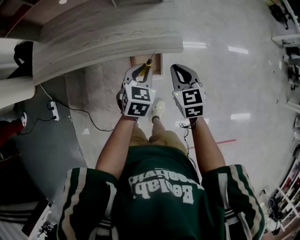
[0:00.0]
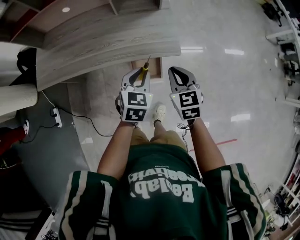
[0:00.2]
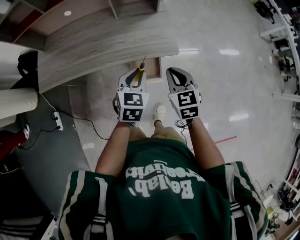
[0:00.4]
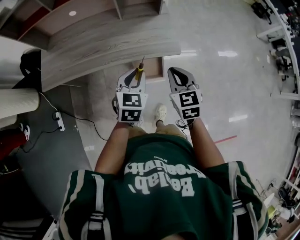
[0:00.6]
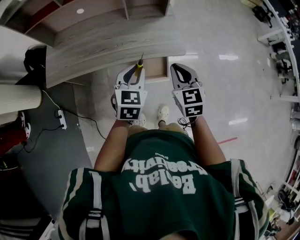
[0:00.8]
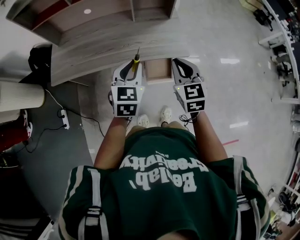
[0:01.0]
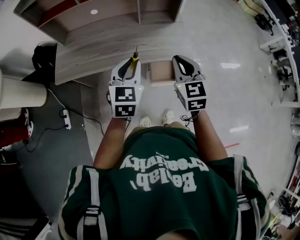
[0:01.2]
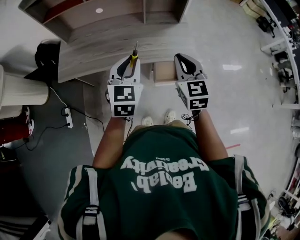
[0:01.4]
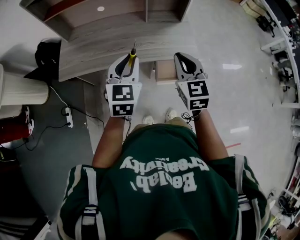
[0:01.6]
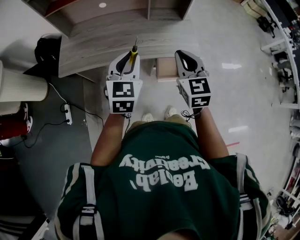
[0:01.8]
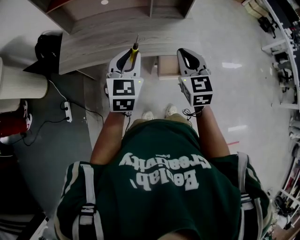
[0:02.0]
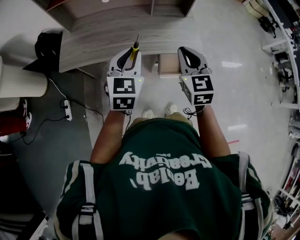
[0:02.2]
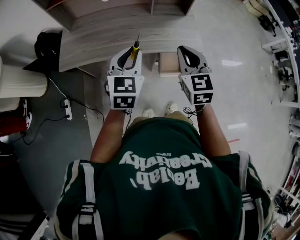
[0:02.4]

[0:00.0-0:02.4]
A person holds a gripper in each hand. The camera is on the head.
0:00.0 to 0:01.2: Both grippers travel together upward and to the left, some 30 cm. The left gripper rotates some 20 degrees.
0:01.2 to 0:02.4: The grippers both shift to the left by approximately 10 cm.

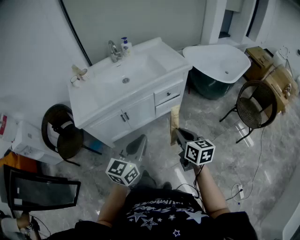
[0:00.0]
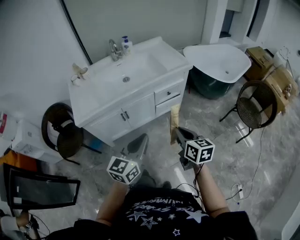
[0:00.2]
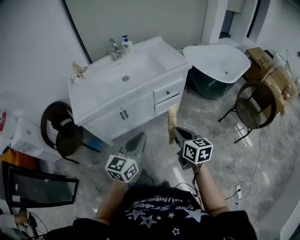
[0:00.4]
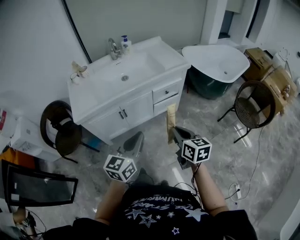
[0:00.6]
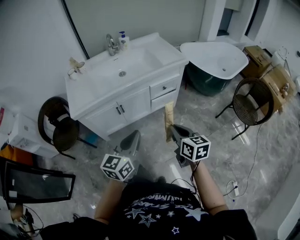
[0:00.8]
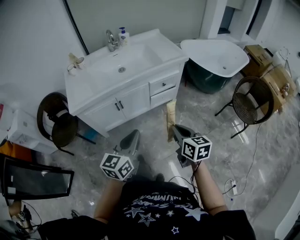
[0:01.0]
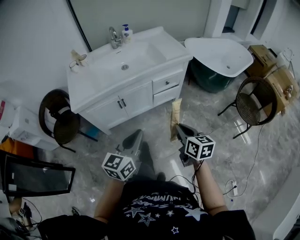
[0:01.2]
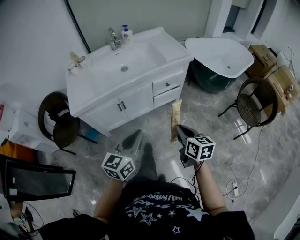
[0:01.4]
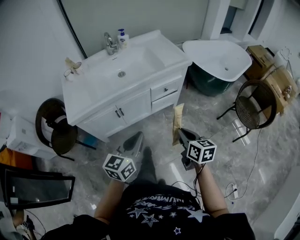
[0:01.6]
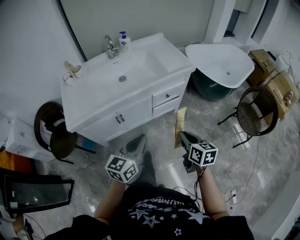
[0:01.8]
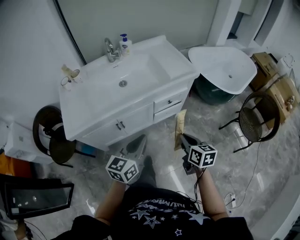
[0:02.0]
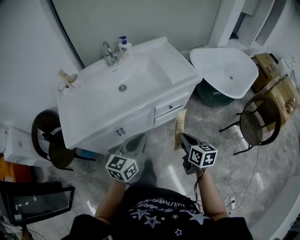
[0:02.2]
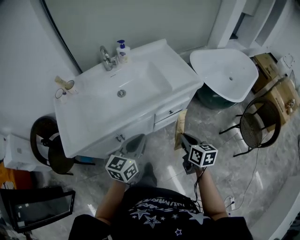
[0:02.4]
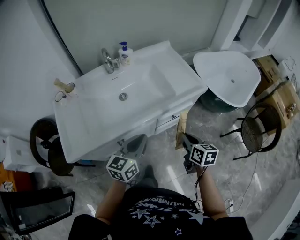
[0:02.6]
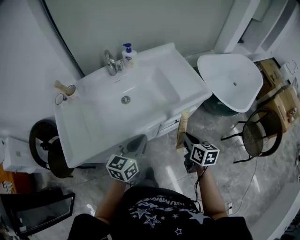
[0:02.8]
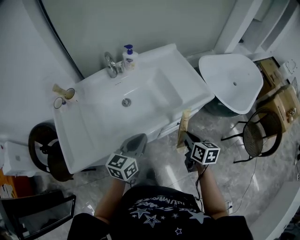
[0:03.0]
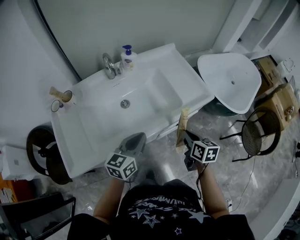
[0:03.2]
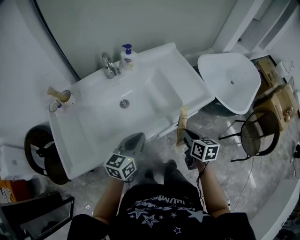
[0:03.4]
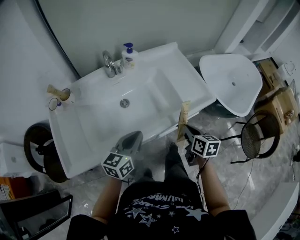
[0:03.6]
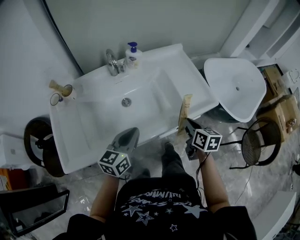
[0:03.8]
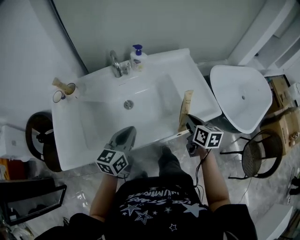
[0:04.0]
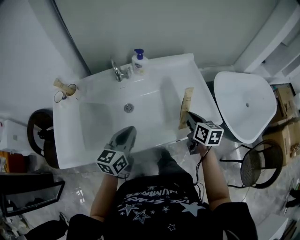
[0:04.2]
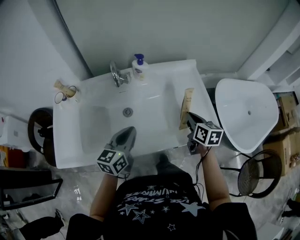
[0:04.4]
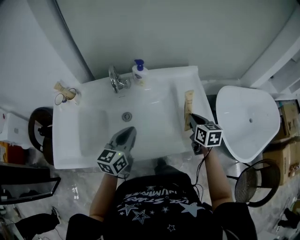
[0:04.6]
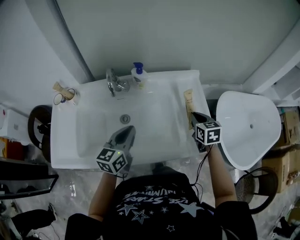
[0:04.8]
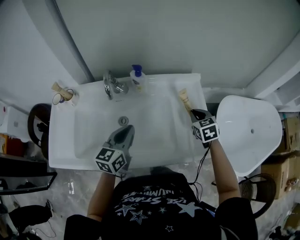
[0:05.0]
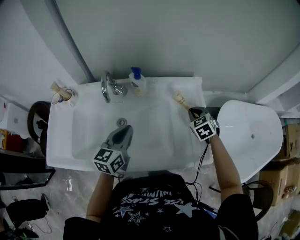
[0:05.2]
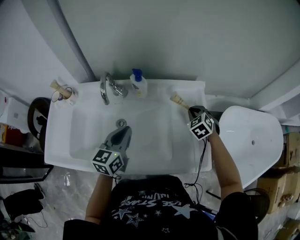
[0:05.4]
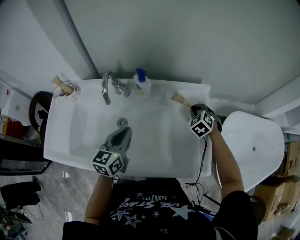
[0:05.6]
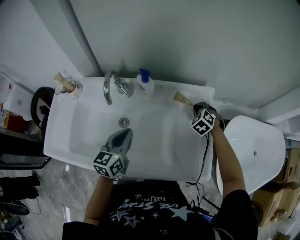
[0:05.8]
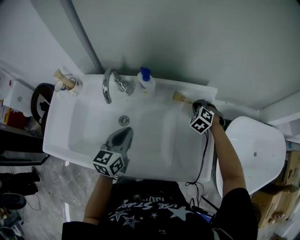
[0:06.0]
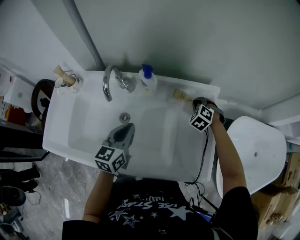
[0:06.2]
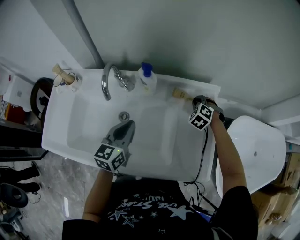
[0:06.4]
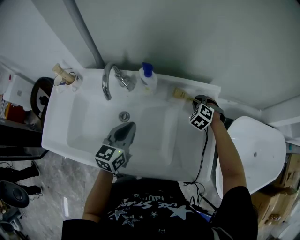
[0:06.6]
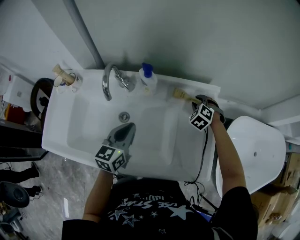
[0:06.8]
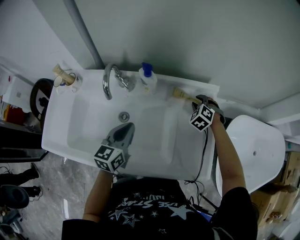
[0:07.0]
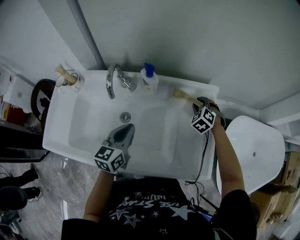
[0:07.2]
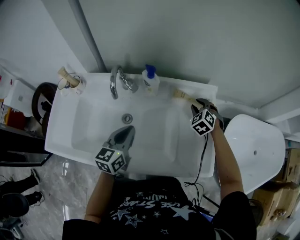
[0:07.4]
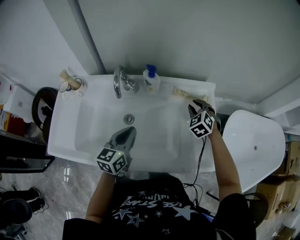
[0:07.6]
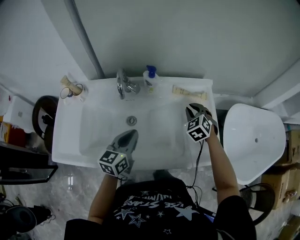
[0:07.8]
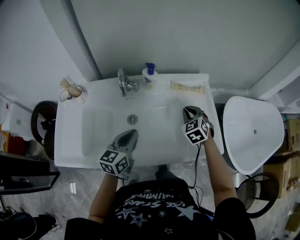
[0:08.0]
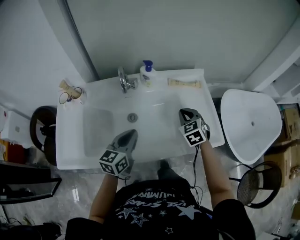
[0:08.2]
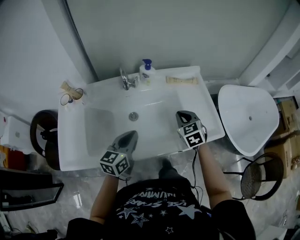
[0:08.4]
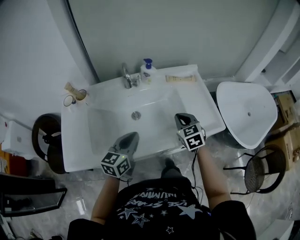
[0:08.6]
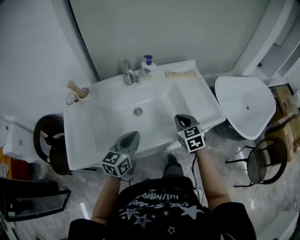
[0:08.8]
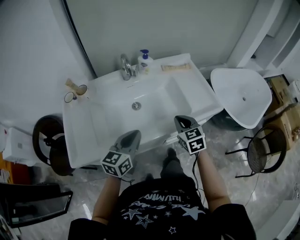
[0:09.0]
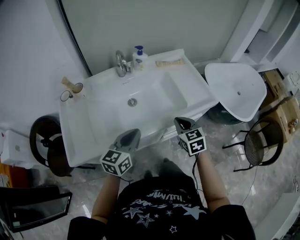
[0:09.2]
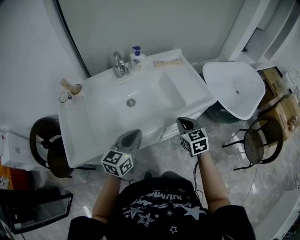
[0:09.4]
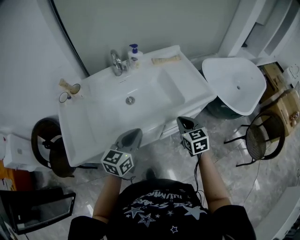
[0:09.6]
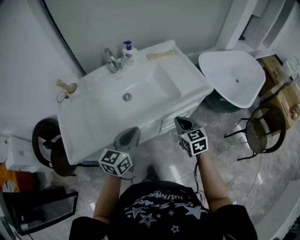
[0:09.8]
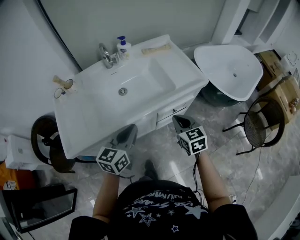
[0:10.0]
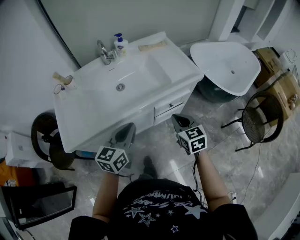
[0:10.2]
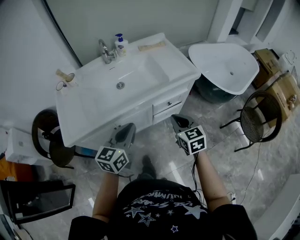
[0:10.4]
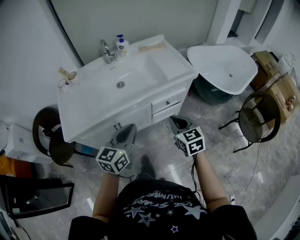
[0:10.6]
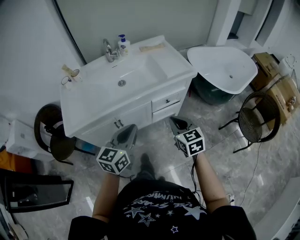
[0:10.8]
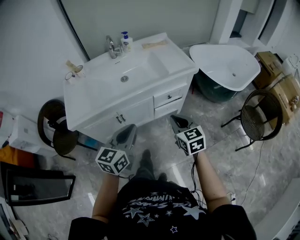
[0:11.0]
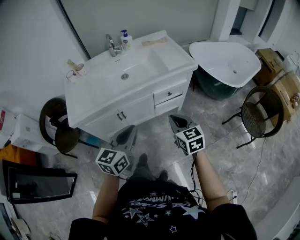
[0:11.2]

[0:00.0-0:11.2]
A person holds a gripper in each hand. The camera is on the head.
0:00.0 to 0:01.6: The right gripper shifts by roughly 5 cm. Meanwhile the left gripper shifts by about 5 cm.
0:01.6 to 0:03.2: Both grippers move forward, roughly 35 cm.
0:03.2 to 0:04.8: The right gripper heads forward, covering about 30 cm, and swivels some 40 degrees. The left gripper heads forward, covering about 15 cm, and changes its angle by some 30 degrees.
0:04.8 to 0:06.4: The left gripper shifts approximately 10 cm forward, while the right gripper moves forward and downward, some 25 cm, and rotates around the line of its fingers by approximately 70 degrees, counterclockwise from behind.
0:06.4 to 0:08.0: The left gripper moves backward, roughly 10 cm, while the right gripper travels backward and upward by about 20 cm, turns by some 40 degrees, and opens, then closes again.
0:08.0 to 0:09.6: The right gripper is displaced backward by approximately 30 cm, and rotates roughly 40 degrees. The left gripper goes approximately 20 cm backward, and rotates roughly 20 degrees.
0:09.6 to 0:11.2: The two grippers go about 25 cm backward.

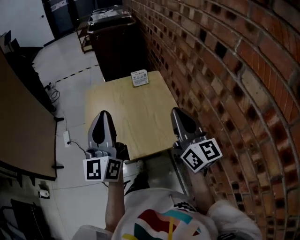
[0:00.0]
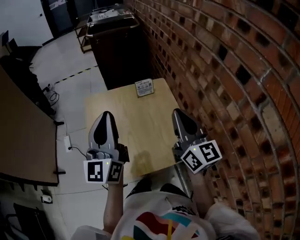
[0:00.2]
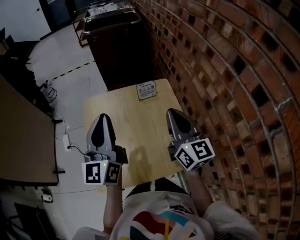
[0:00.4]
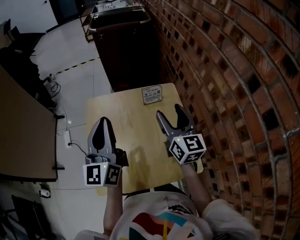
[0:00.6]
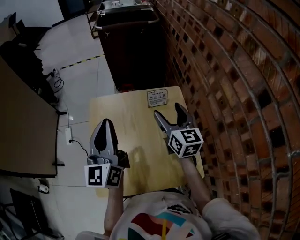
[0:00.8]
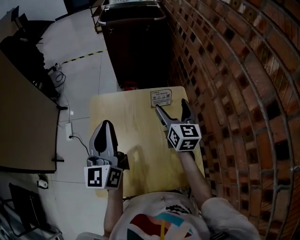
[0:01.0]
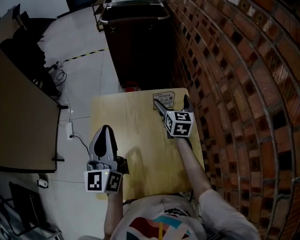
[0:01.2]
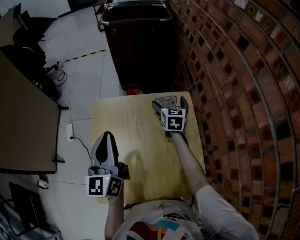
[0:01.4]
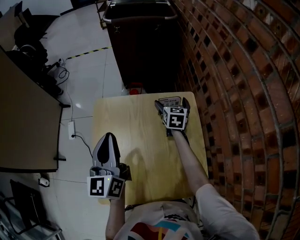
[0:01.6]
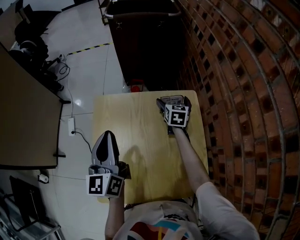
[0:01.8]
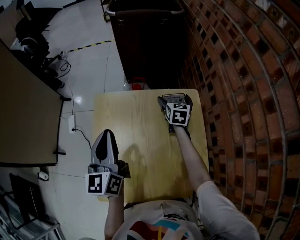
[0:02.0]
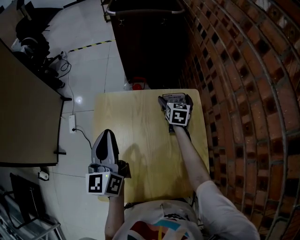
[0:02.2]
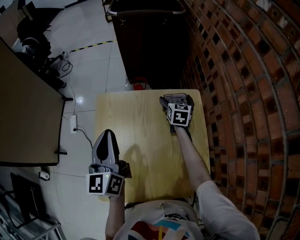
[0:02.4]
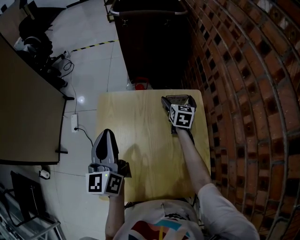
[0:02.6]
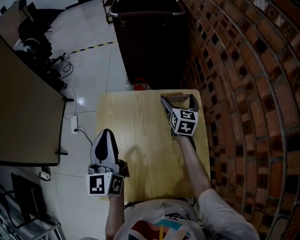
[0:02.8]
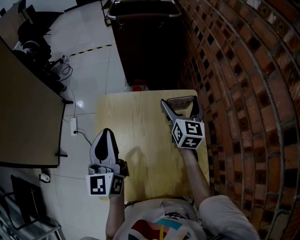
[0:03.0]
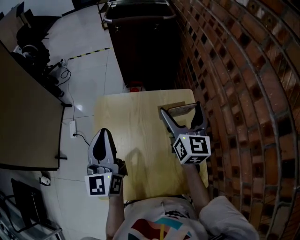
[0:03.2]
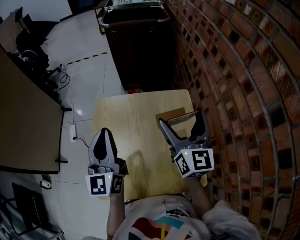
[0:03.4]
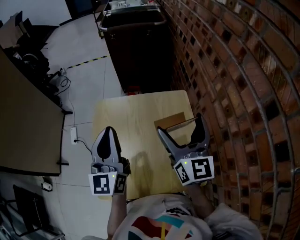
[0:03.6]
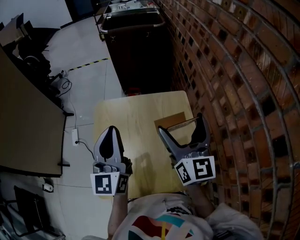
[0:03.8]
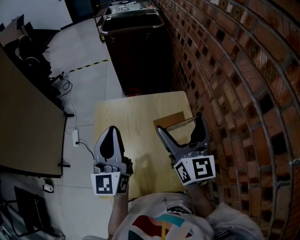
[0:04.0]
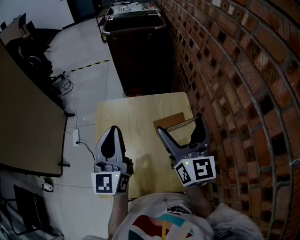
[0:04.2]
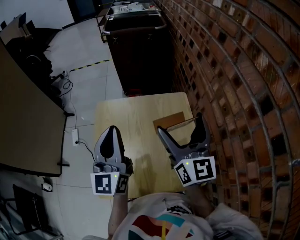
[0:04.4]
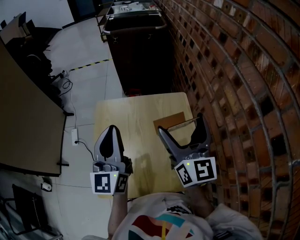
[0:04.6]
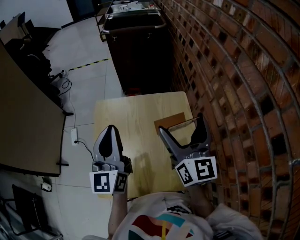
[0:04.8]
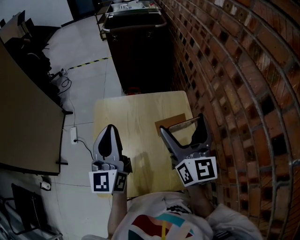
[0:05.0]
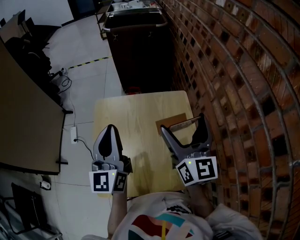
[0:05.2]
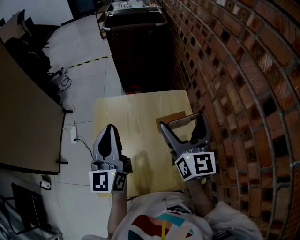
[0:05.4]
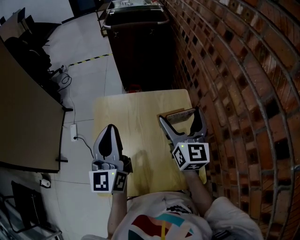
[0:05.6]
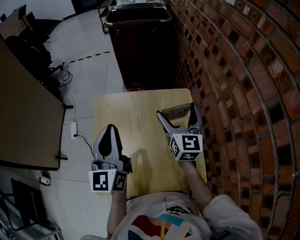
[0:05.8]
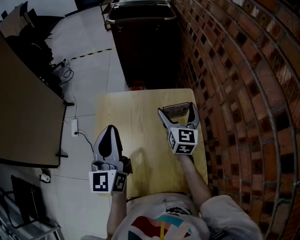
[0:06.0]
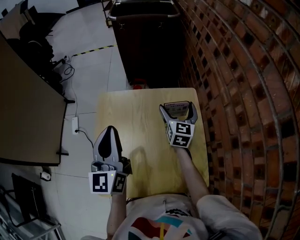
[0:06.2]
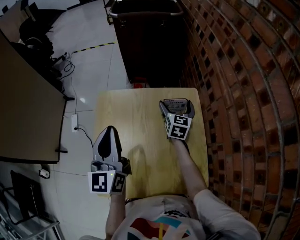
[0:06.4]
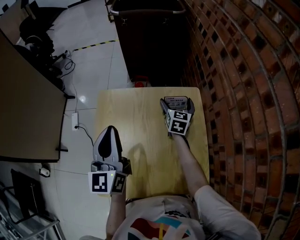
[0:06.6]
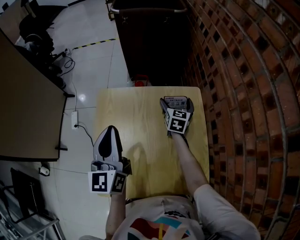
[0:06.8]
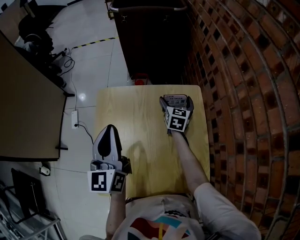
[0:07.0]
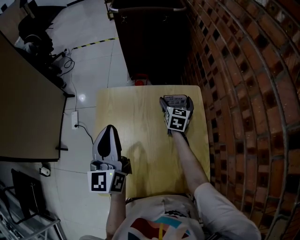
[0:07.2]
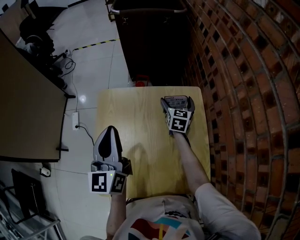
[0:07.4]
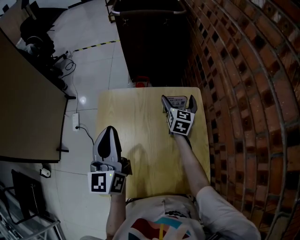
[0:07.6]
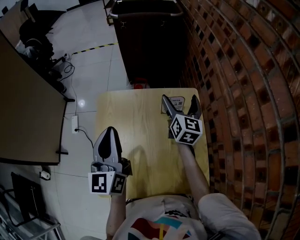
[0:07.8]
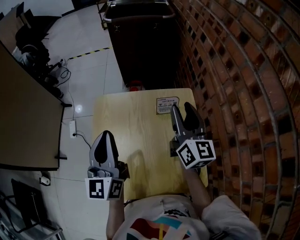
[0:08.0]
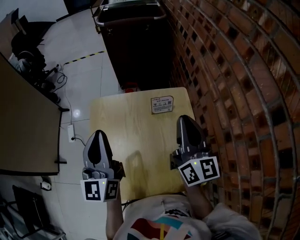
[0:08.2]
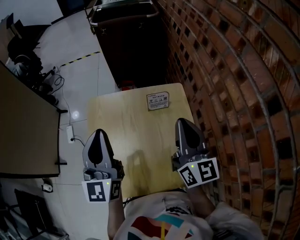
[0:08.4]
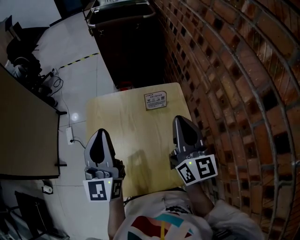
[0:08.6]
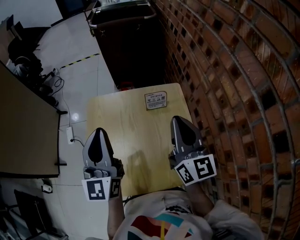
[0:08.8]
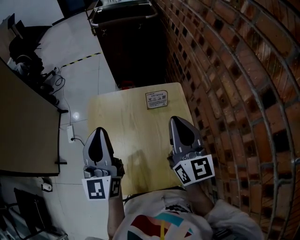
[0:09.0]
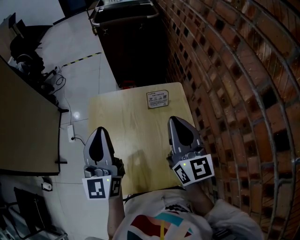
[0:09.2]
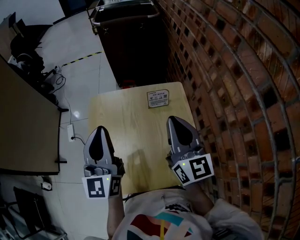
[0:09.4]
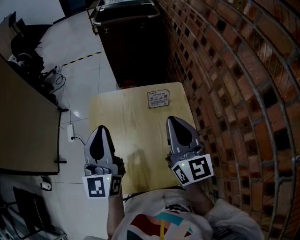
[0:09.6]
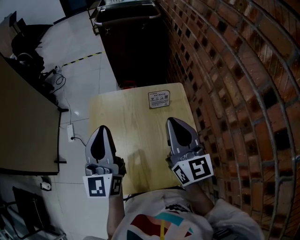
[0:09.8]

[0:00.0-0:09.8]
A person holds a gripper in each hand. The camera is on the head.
0:00.0 to 0:01.4: The right gripper shifts about 50 cm forward and downward, angles its fingers downward, by roughly 40 degrees, and opens up. The left gripper shifts roughly 25 cm forward, and turns by some 20 degrees.
0:02.8 to 0:04.2: The left gripper travels upward, to the right and backward by roughly 10 cm. The right gripper goes about 30 cm backward and upward, and rotates roughly 30 degrees.
0:04.2 to 0:05.6: The right gripper travels downward by approximately 5 cm.
0:05.6 to 0:07.0: The right gripper travels downward and forward by some 30 cm, and swivels about 30 degrees; the left gripper shifts approximately 5 cm downward.
0:07.0 to 0:08.4: The right gripper shifts about 35 cm upward and backward, tilts its fingers about 30 degrees upward, and closes up; the left gripper shifts approximately 5 cm upward.
0:08.4 to 0:09.8: The grippers make only small movements.
